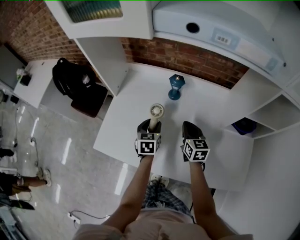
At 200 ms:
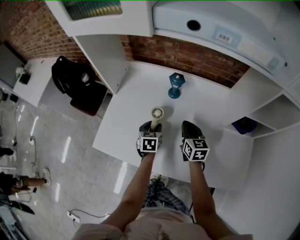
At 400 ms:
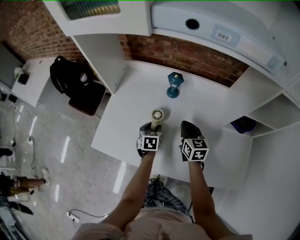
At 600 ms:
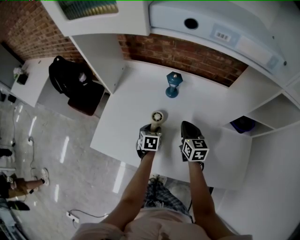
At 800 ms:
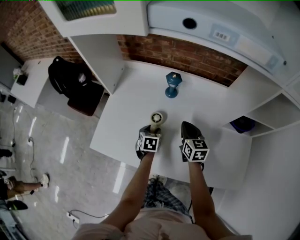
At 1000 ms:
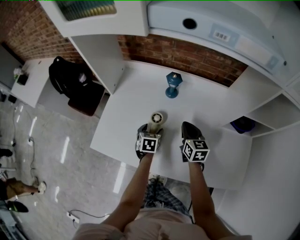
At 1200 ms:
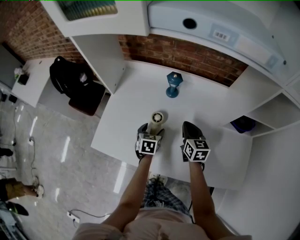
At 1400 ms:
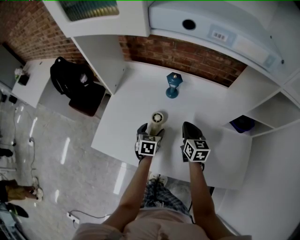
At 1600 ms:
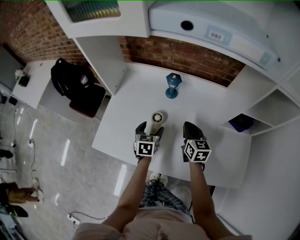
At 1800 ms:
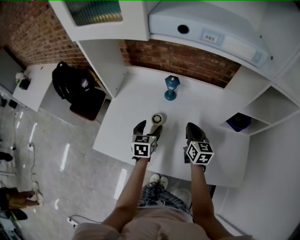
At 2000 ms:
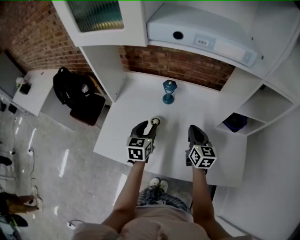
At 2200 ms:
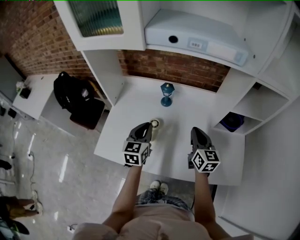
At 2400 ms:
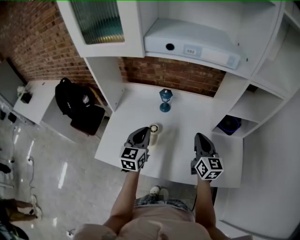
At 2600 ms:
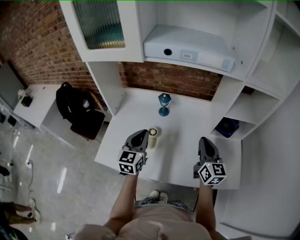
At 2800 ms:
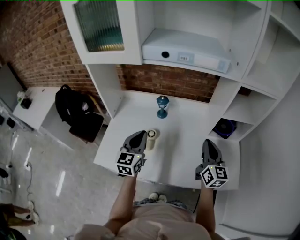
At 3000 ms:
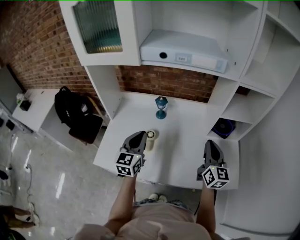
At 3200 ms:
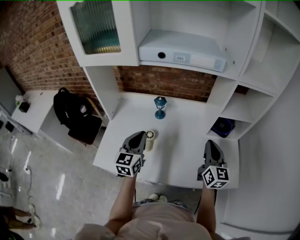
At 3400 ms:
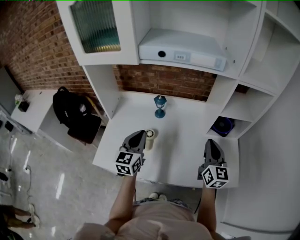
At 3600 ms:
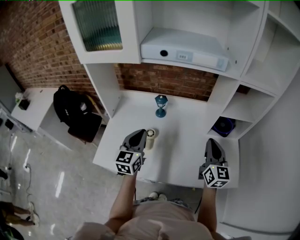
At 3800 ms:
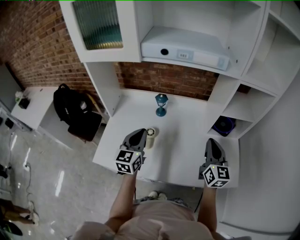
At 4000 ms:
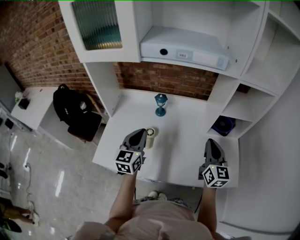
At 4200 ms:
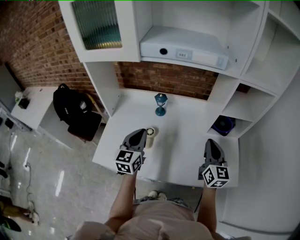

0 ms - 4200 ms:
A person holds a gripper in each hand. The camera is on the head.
0 ms - 1400 ms: The left gripper opens.
1400 ms - 2800 ms: The left gripper moves upward, some 25 cm, tilts its fingers some 40 degrees upward, and closes; the right gripper shifts about 25 cm upward, backward and to the right, and changes its angle by approximately 30 degrees.
2800 ms - 4200 ms: The grippers stay close to where they were, moving slightly.

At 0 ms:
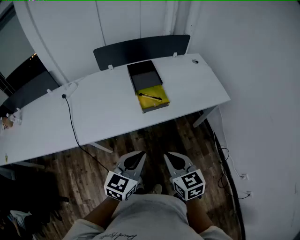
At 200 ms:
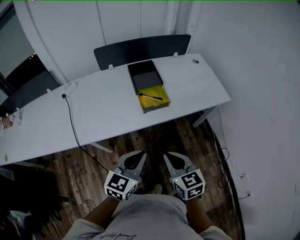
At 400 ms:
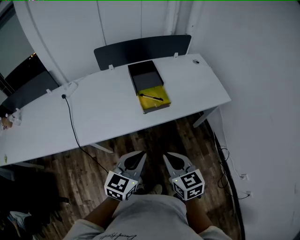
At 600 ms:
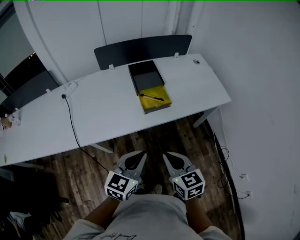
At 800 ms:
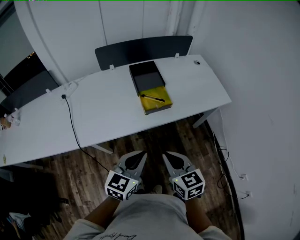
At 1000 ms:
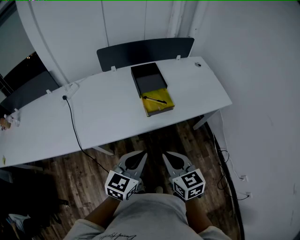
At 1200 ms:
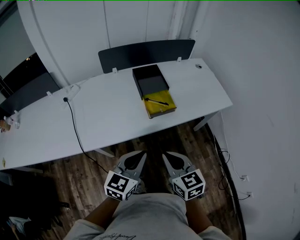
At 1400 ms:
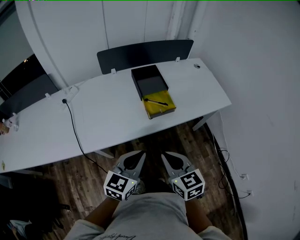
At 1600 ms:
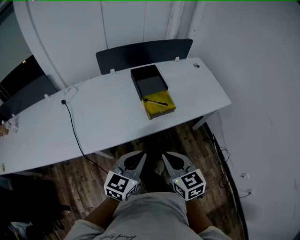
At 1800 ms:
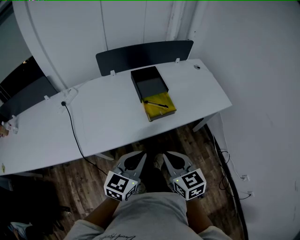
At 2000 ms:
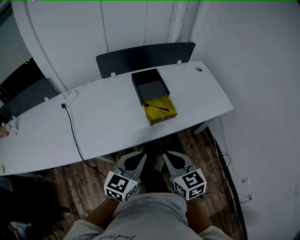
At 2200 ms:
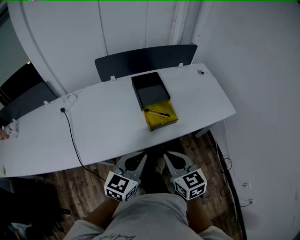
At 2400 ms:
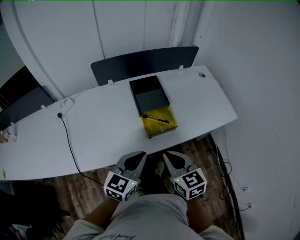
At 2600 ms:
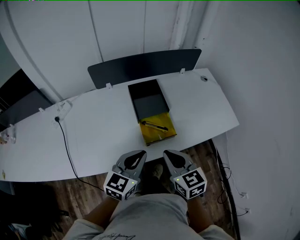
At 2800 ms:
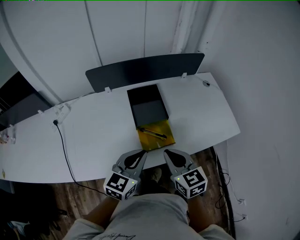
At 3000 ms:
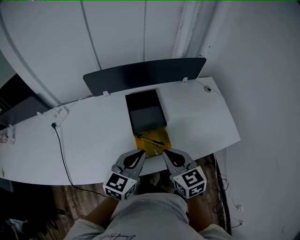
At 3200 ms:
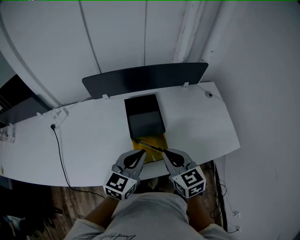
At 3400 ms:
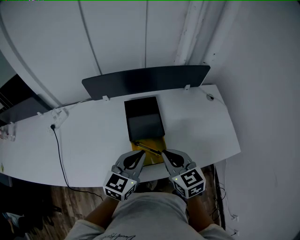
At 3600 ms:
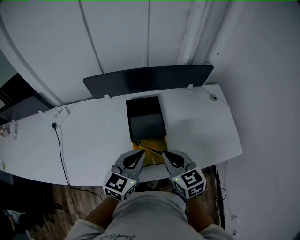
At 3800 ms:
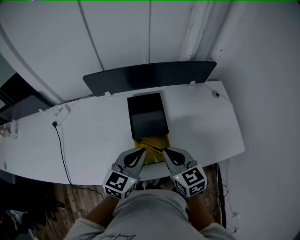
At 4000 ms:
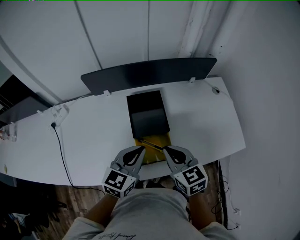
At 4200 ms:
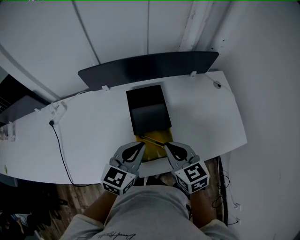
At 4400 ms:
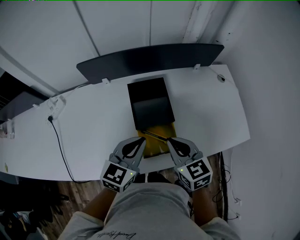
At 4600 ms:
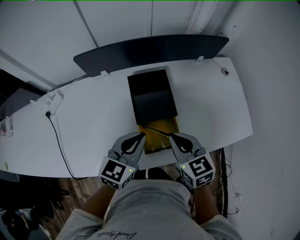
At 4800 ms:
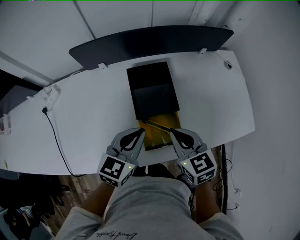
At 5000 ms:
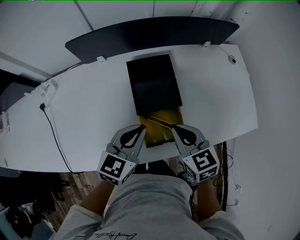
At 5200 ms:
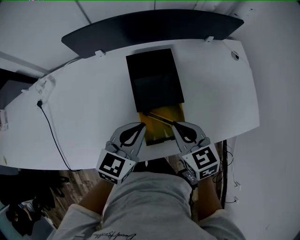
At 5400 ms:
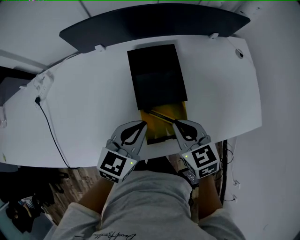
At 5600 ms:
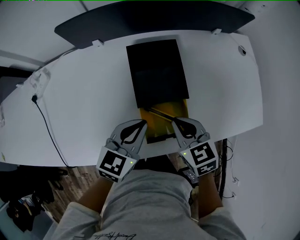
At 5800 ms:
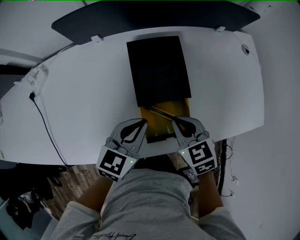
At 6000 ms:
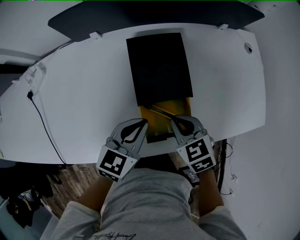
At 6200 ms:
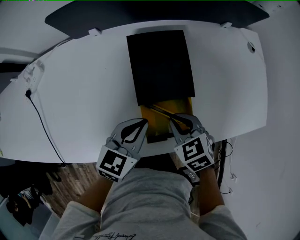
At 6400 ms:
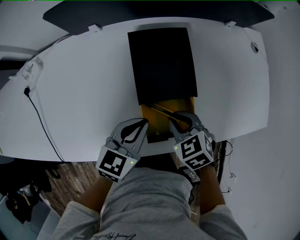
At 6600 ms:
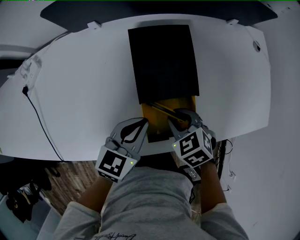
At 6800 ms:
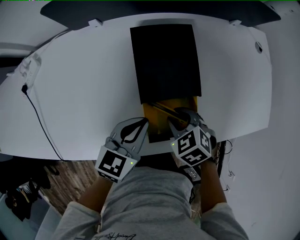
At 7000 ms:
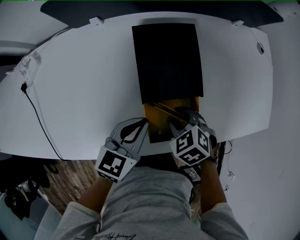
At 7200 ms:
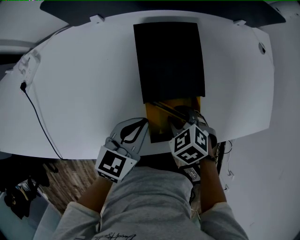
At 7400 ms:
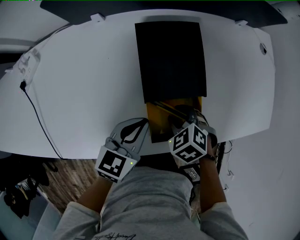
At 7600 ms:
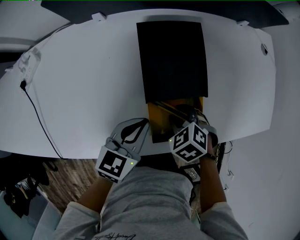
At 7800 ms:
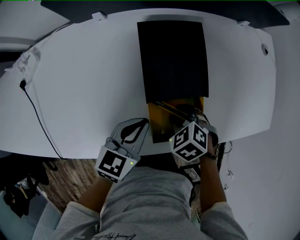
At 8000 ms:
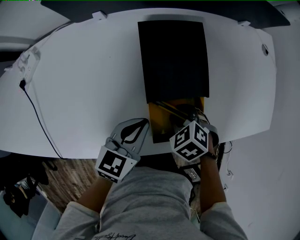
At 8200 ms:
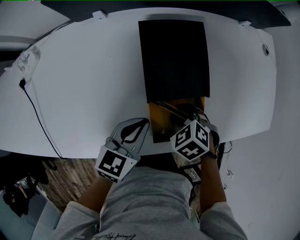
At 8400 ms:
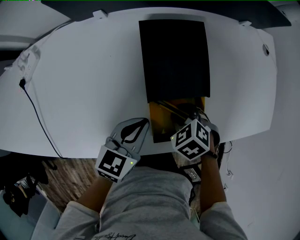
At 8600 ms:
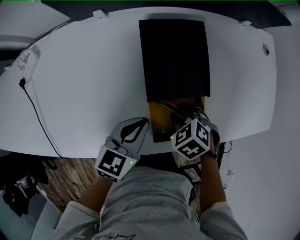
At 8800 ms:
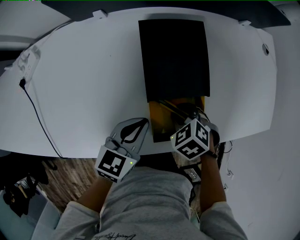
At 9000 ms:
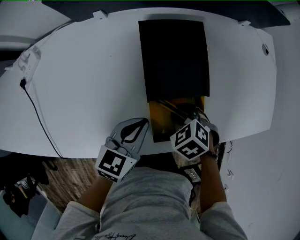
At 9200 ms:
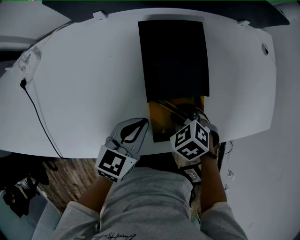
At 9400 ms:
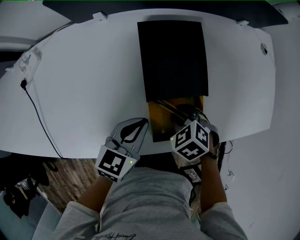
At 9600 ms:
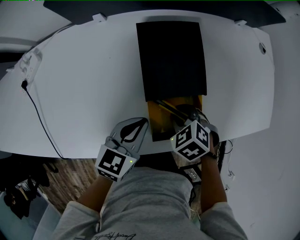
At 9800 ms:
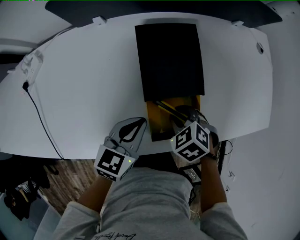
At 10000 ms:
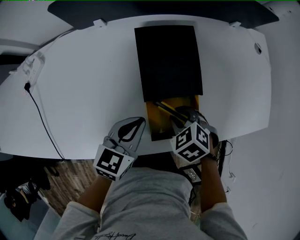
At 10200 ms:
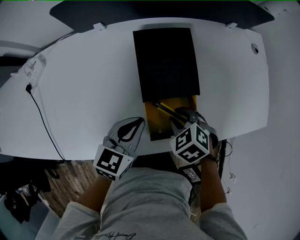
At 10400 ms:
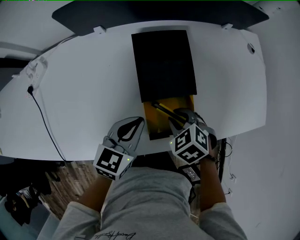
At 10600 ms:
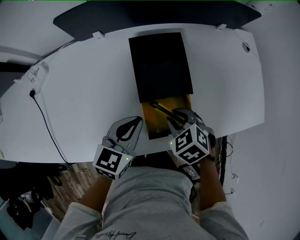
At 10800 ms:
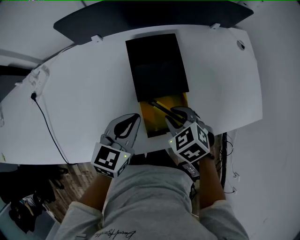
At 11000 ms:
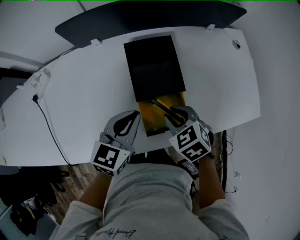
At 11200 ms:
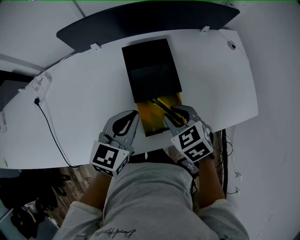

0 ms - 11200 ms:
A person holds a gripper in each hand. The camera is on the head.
0 ms - 1600 ms: Both grippers travel together to the left, some 5 cm.
1600 ms - 3200 ms: Both grippers move forward, some 30 cm.
3200 ms - 4800 ms: The right gripper heads downward and forward, covering some 10 cm, while the left gripper travels forward and downward by some 10 cm.
4800 ms - 6400 ms: Both grippers travel together downward, about 15 cm. The right gripper changes its angle by roughly 30 degrees.
6400 ms - 8000 ms: The right gripper heads downward, covering roughly 5 cm.
8000 ms - 9600 ms: Both grippers stay put.
9600 ms - 11200 ms: Both grippers travel together upward, some 10 cm. The right gripper swivels some 20 degrees.

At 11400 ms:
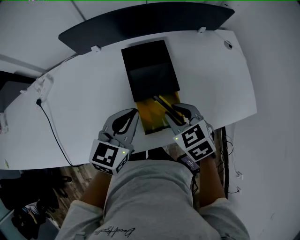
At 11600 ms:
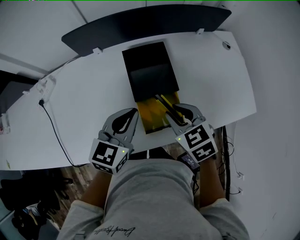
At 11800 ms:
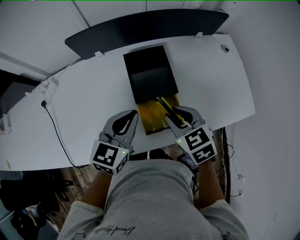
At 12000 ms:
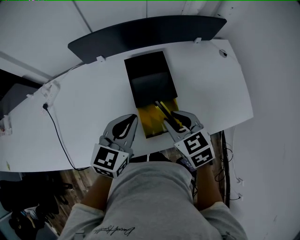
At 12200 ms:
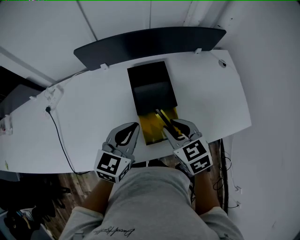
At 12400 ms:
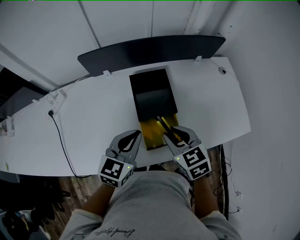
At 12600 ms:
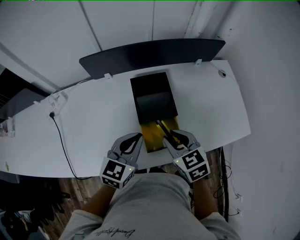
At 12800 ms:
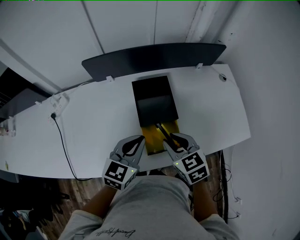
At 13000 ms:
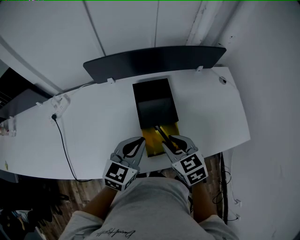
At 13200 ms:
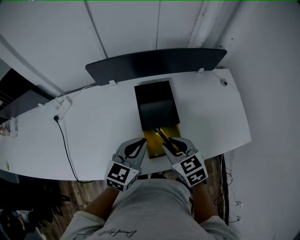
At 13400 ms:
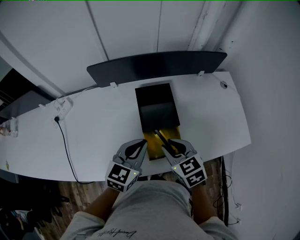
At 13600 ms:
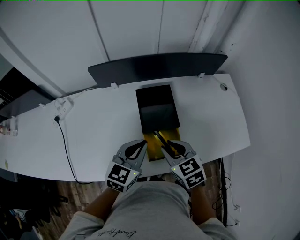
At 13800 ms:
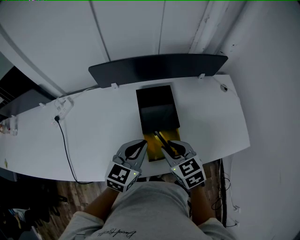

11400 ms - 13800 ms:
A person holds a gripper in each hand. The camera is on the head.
11400 ms - 12600 ms: The right gripper goes approximately 5 cm upward.
12600 ms - 13800 ms: The grippers make only small movements.

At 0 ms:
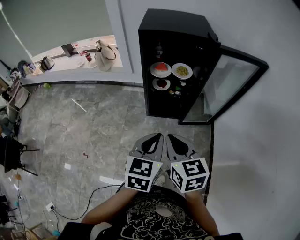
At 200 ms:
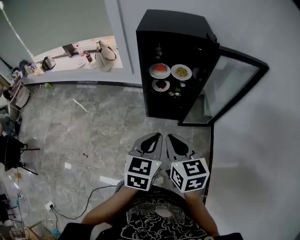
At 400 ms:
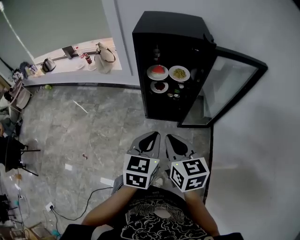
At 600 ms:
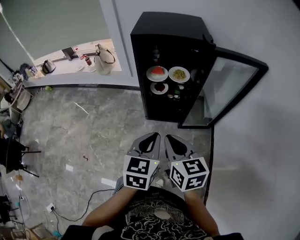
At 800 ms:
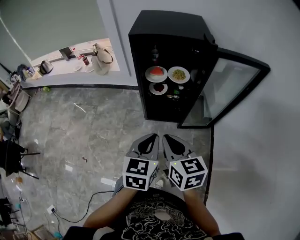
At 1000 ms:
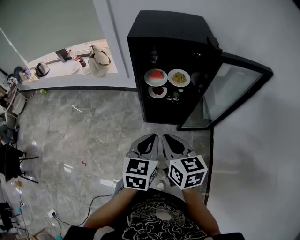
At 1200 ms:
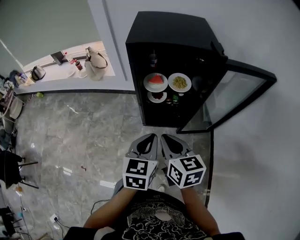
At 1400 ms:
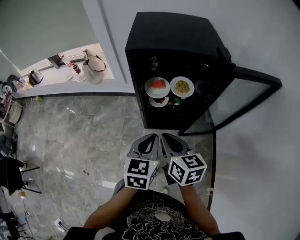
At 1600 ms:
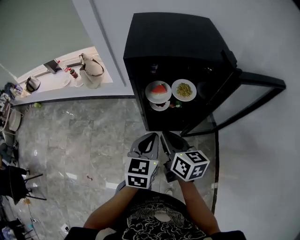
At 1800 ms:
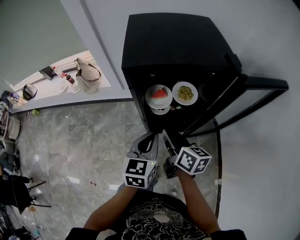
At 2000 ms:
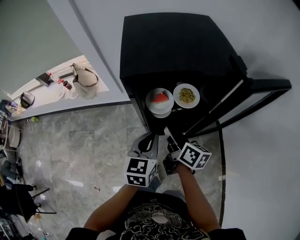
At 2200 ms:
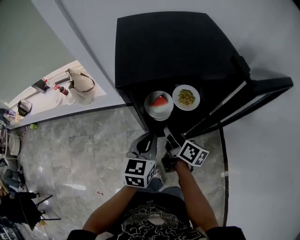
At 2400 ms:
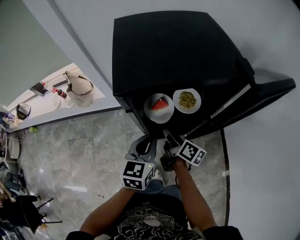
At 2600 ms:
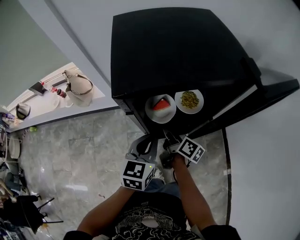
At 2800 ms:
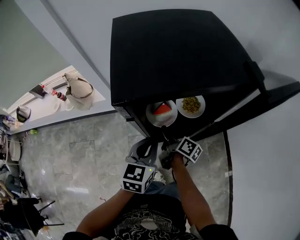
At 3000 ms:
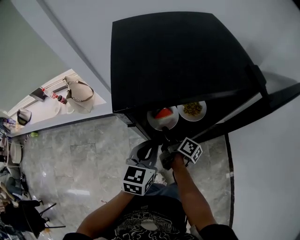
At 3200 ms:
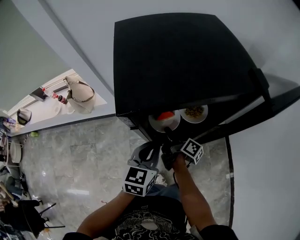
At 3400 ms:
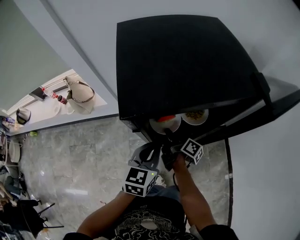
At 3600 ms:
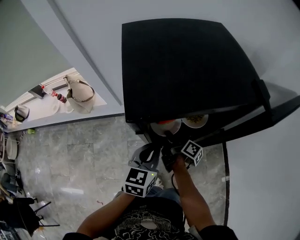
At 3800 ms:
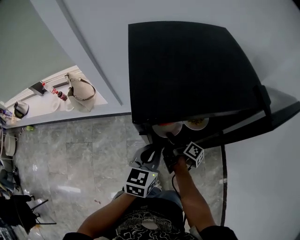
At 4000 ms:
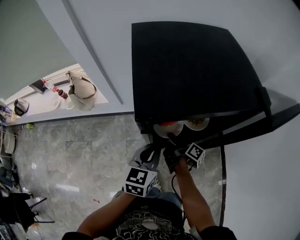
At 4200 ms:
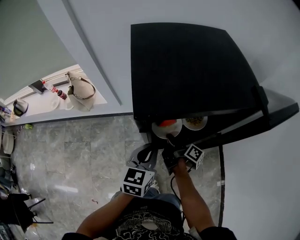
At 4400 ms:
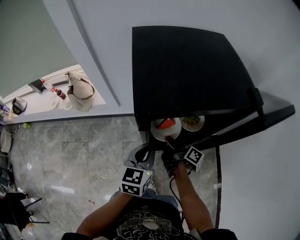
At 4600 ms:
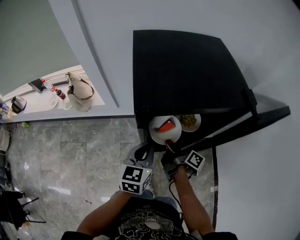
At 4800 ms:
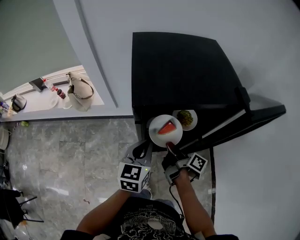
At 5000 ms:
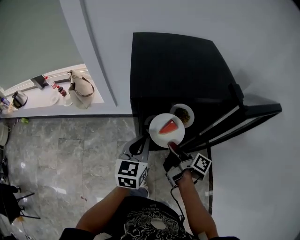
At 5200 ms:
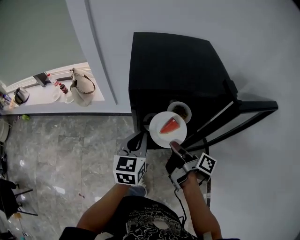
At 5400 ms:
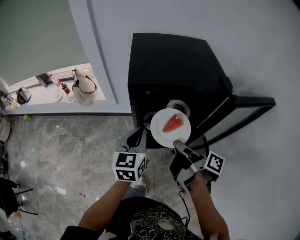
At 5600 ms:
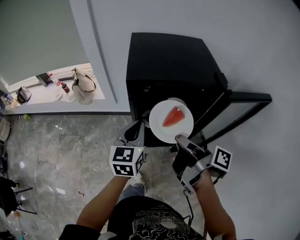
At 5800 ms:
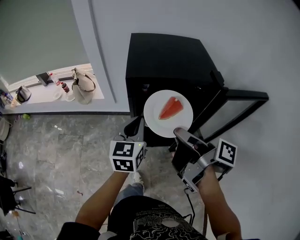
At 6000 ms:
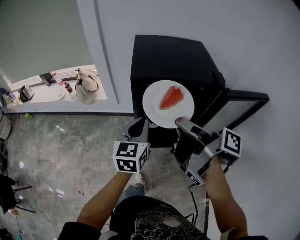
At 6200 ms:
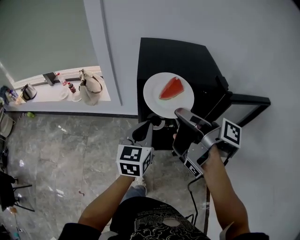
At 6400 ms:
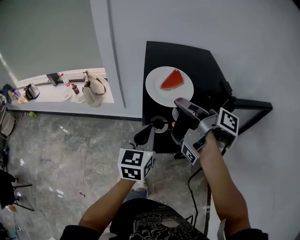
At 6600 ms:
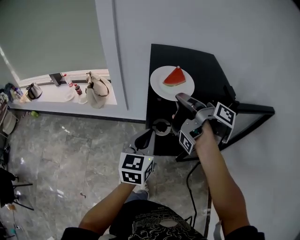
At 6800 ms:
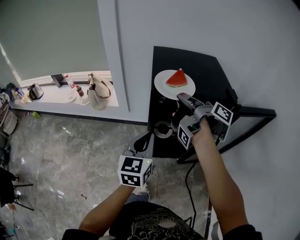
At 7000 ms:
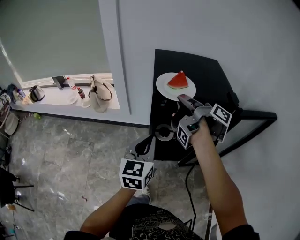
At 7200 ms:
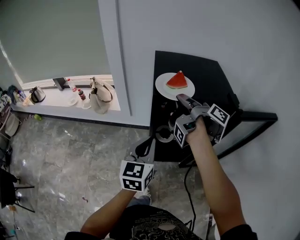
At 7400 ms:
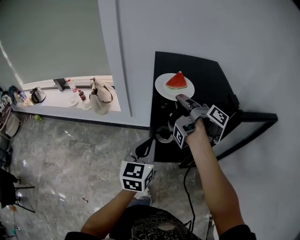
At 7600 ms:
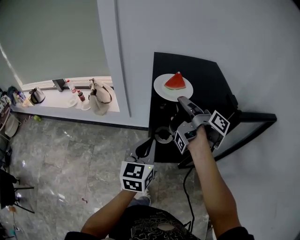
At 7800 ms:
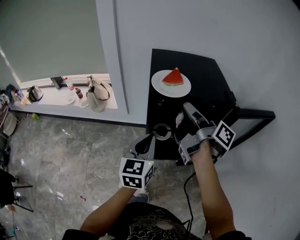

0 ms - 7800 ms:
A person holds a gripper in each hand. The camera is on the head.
0 ms - 1600 ms: The left gripper changes place by approximately 25 cm.
1600 ms - 3200 ms: The left gripper moves approximately 15 cm.
4600 ms - 6200 ms: The left gripper is displaced upward by about 15 cm.
